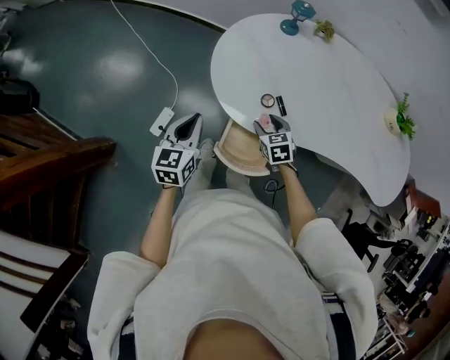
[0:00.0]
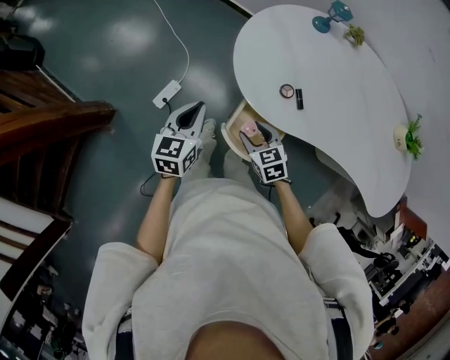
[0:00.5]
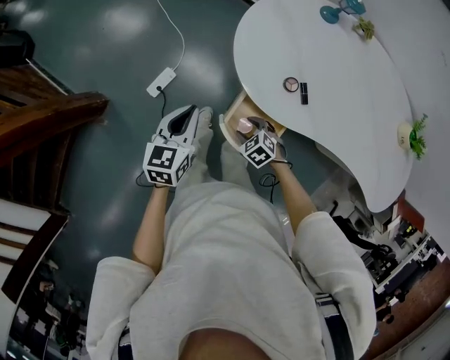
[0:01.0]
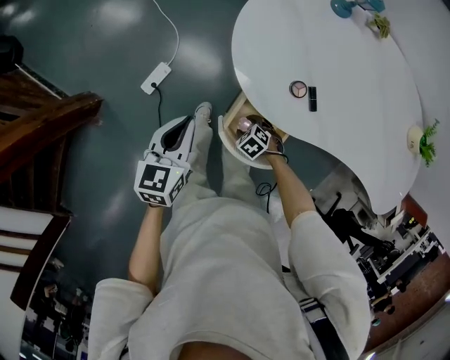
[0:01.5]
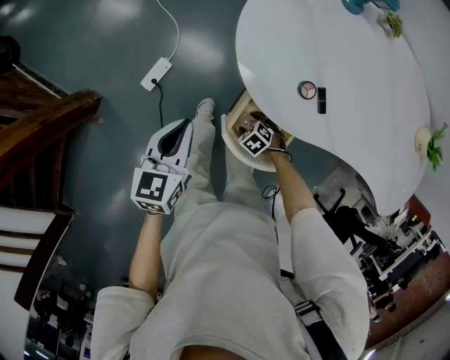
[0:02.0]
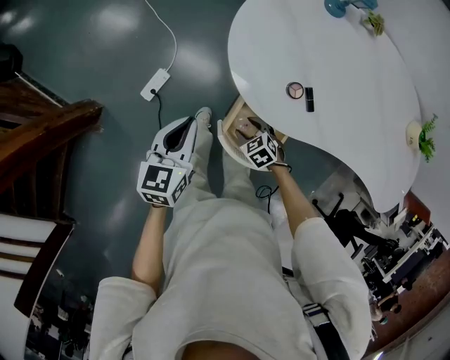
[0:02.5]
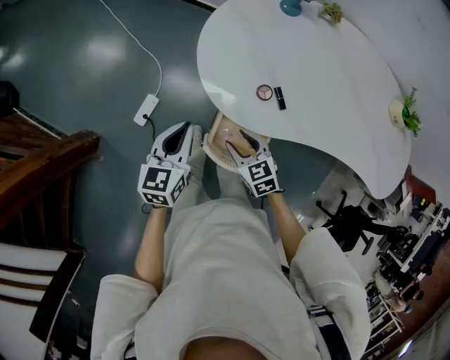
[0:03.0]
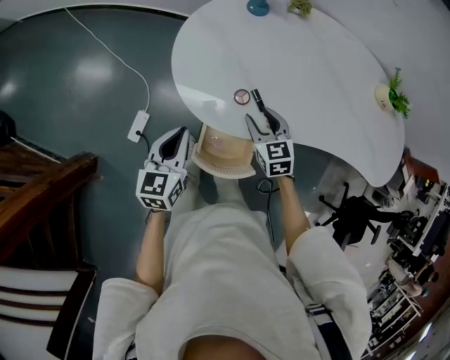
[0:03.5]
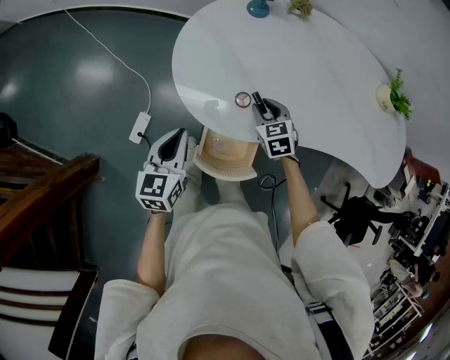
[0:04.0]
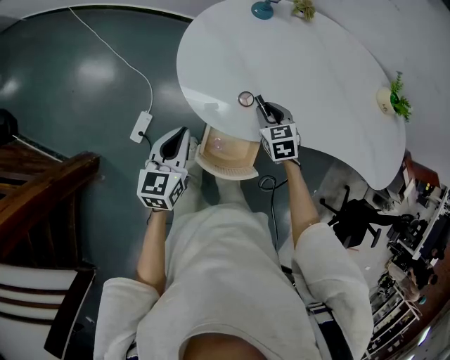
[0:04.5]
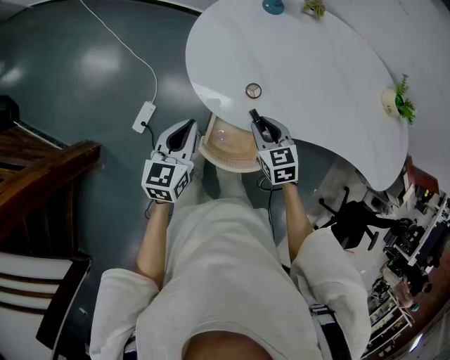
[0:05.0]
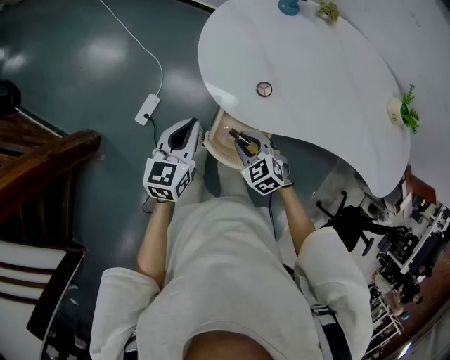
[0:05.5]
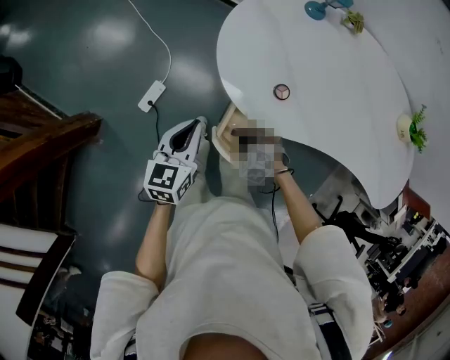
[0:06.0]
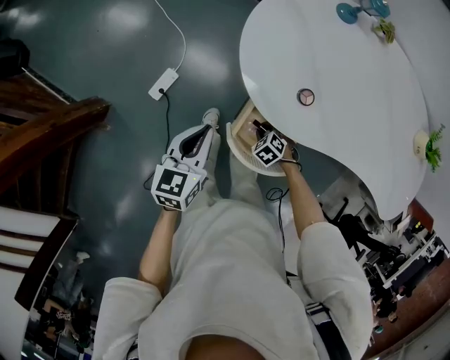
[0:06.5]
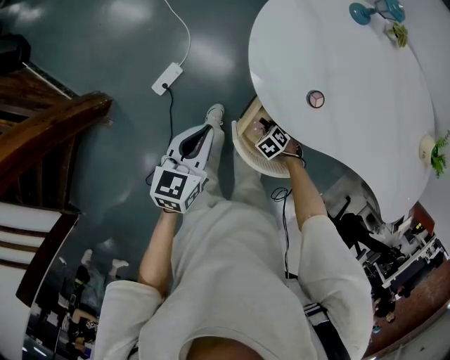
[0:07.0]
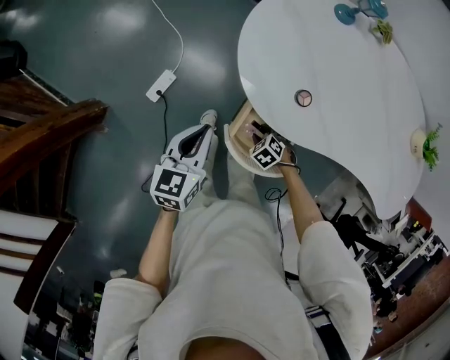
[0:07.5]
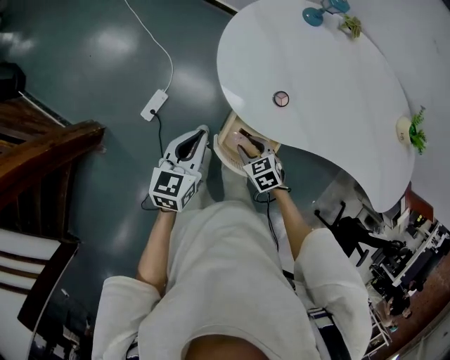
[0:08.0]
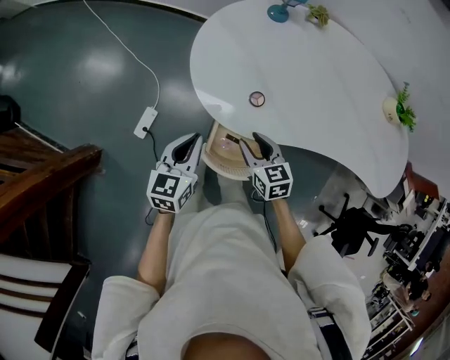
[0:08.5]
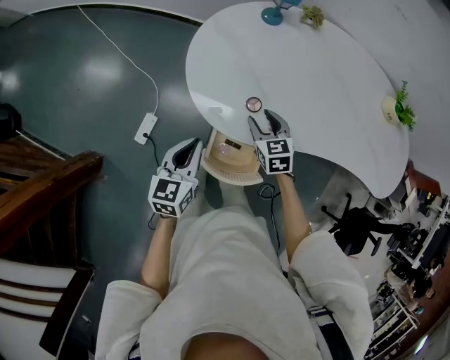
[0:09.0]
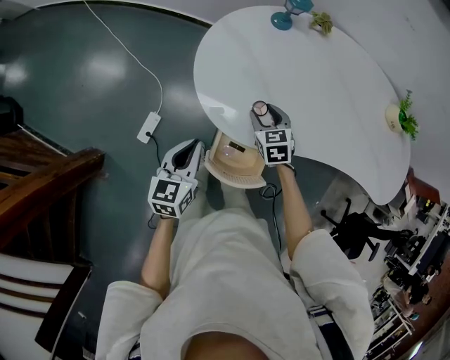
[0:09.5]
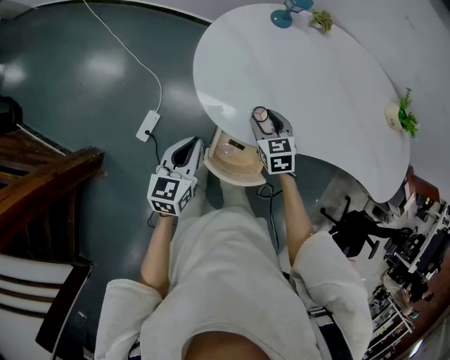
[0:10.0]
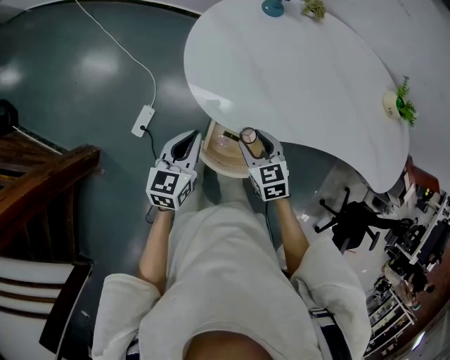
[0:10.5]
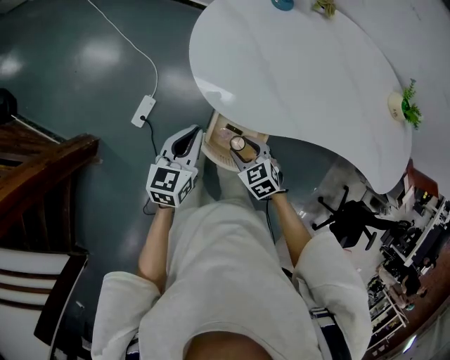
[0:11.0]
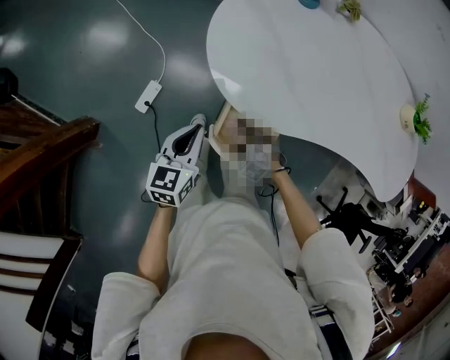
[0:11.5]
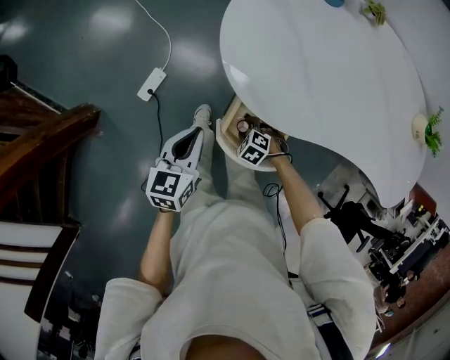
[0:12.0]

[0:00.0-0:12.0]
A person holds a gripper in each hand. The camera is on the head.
0:00.0 to 0:02.0: The left gripper goes some 10 cm downward; the right gripper is displaced downward by approximately 25 cm, and rotates some 50 degrees.
0:02.0 to 0:04.0: The left gripper changes place by approximately 15 cm; the right gripper is displaced upward by approximately 25 cm, swivels roughly 50 degrees, and closes its fingers.
0:04.0 to 0:06.0: The left gripper travels to the left by some 5 cm. Meanwhile the right gripper is displaced backward, to the left and downward by approximately 25 cm, and rolls counterclockwise, seen from behind, by about 50 degrees.
0:06.0 to 0:08.0: The right gripper moves approximately 15 cm downward and comes back, and changes its angle by about 40 degrees.
0:08.0 to 0:10.0: The right gripper is displaced forward, upward and to the right by some 20 cm, and changes its angle by approximately 30 degrees.
0:10.0 to 0:12.0: The left gripper shifts roughly 5 cm downward; the right gripper heads downward, covering some 20 cm, and turns by about 60 degrees.

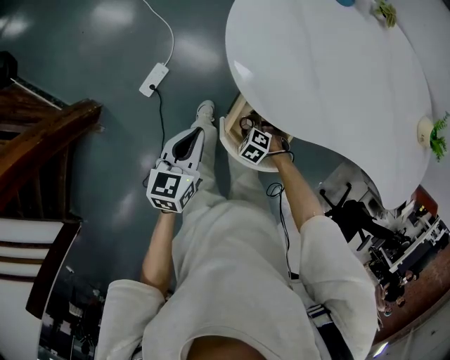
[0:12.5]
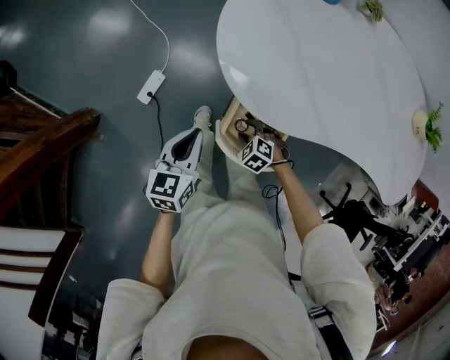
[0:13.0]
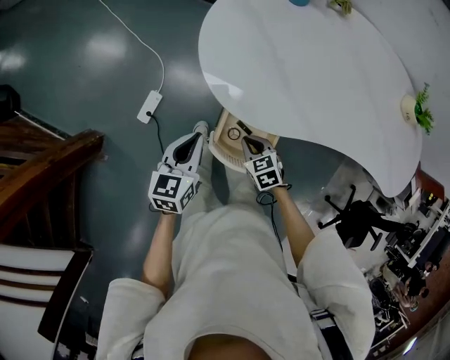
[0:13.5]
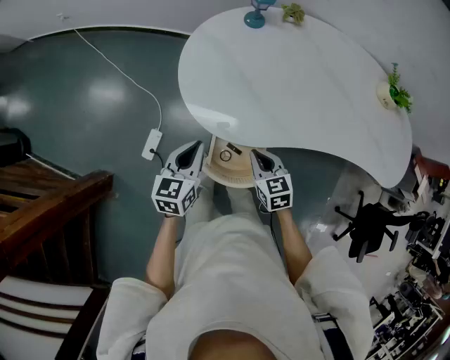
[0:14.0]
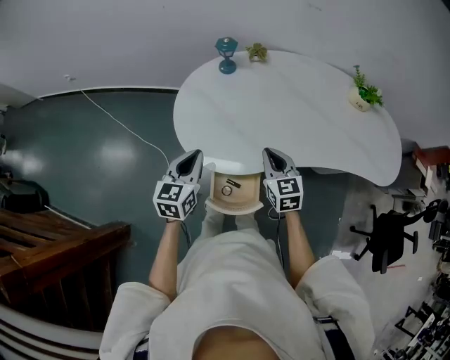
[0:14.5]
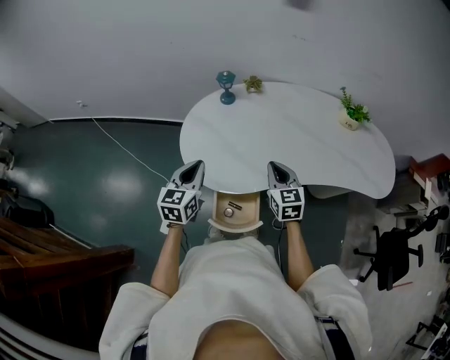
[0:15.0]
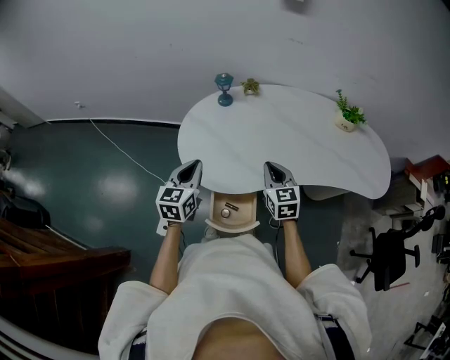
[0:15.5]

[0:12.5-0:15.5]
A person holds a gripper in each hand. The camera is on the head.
0:12.5 to 0:14.0: The left gripper shifts by about 15 cm. The right gripper moves upward, approximately 25 cm, points its fingers roughly 40 degrees further upward, and closes its fingers.
0:14.0 to 0:15.5: The left gripper moves upward and forward, roughly 15 cm. The right gripper travels upward, to the right and forward by roughly 20 cm, and rotates some 30 degrees.

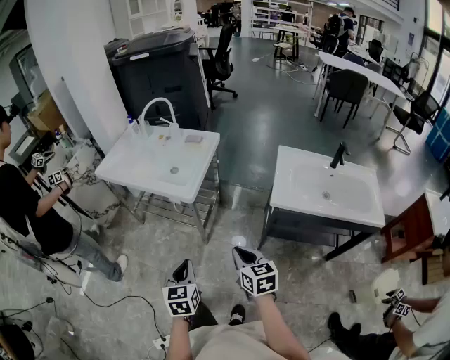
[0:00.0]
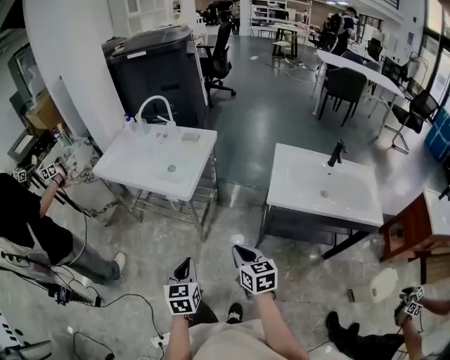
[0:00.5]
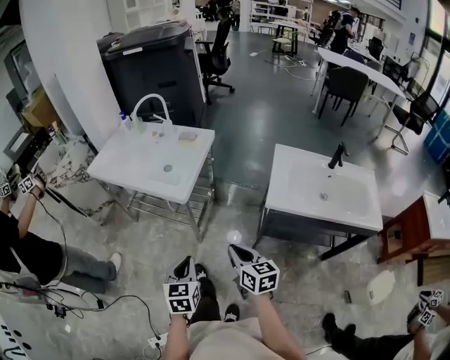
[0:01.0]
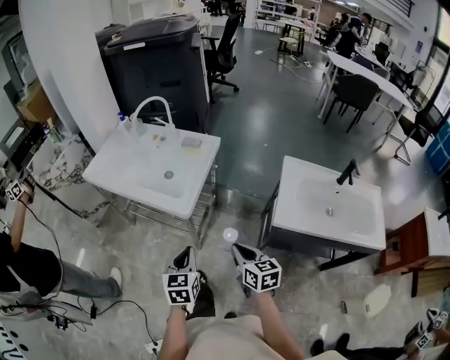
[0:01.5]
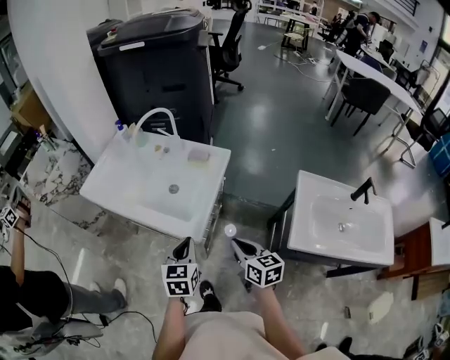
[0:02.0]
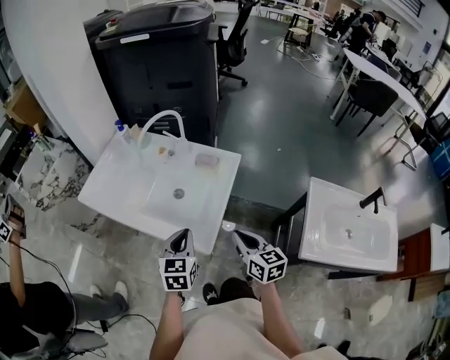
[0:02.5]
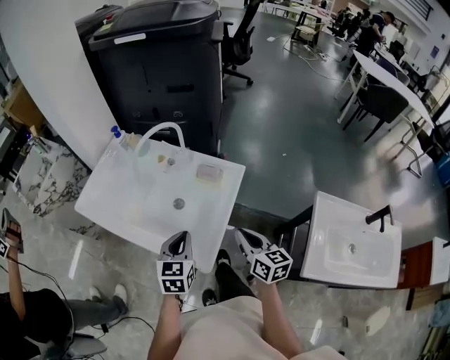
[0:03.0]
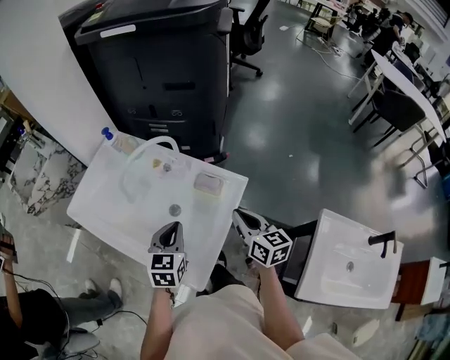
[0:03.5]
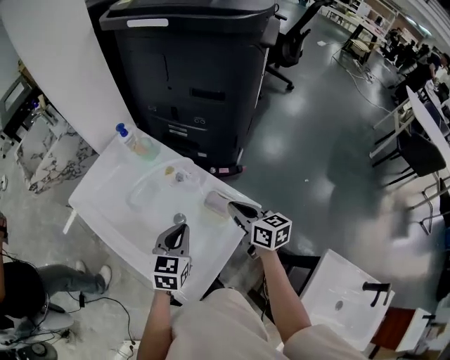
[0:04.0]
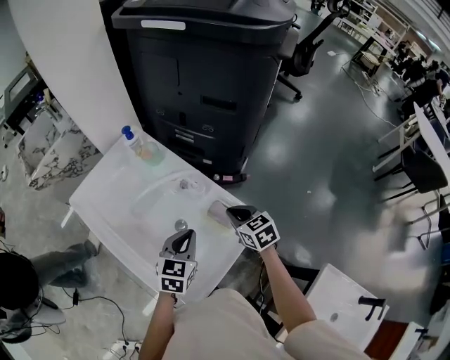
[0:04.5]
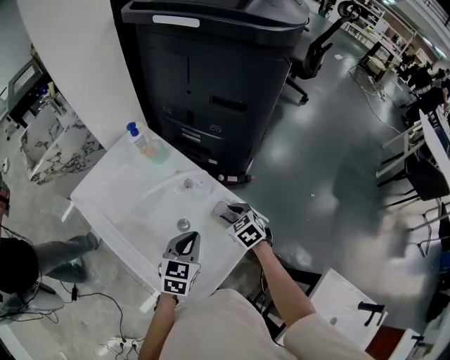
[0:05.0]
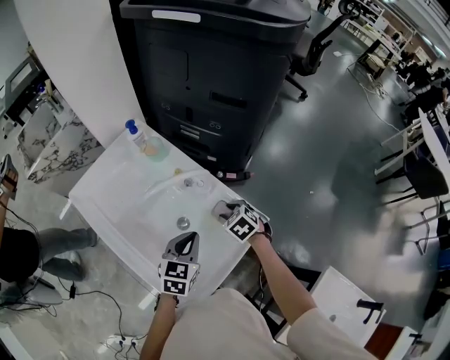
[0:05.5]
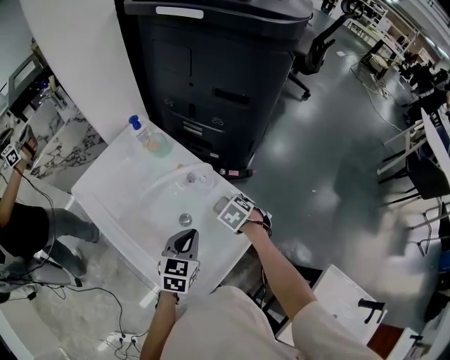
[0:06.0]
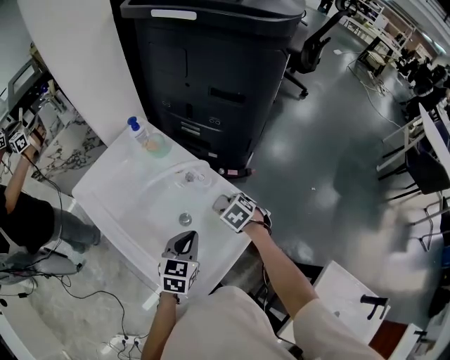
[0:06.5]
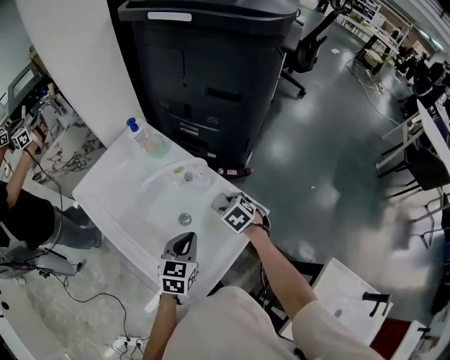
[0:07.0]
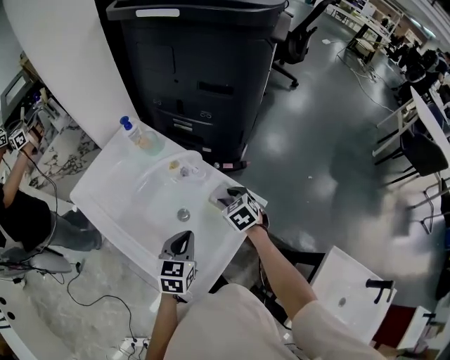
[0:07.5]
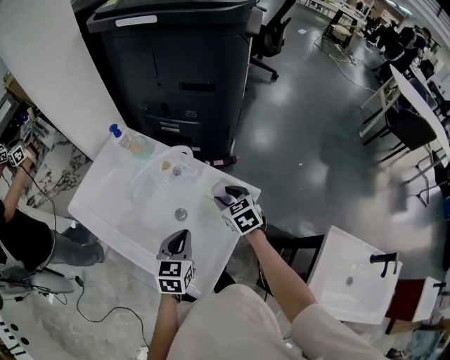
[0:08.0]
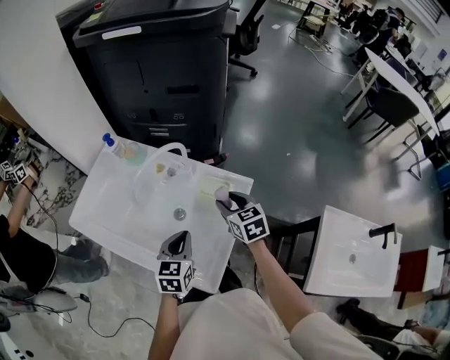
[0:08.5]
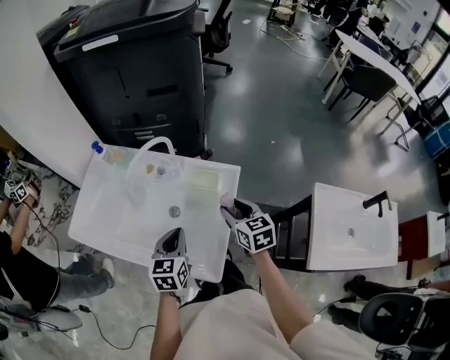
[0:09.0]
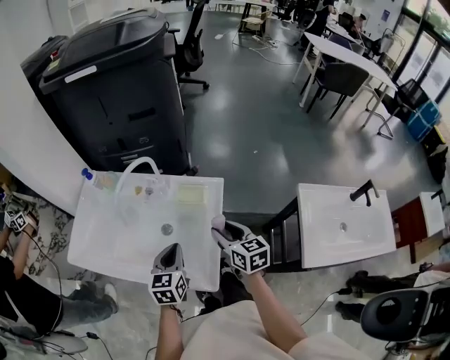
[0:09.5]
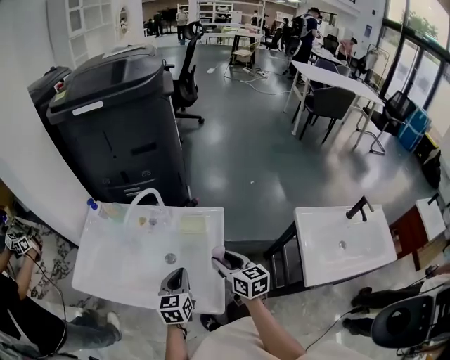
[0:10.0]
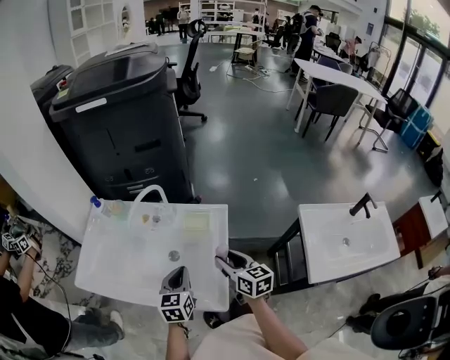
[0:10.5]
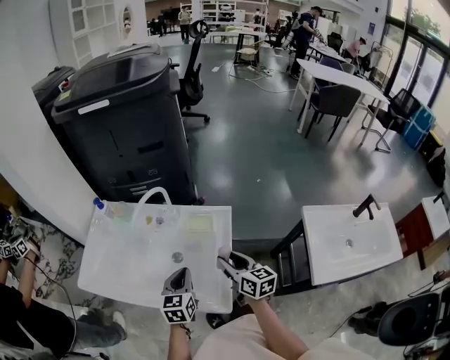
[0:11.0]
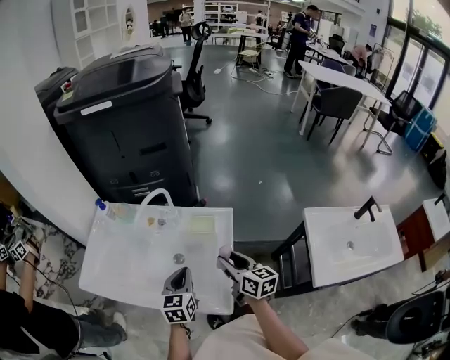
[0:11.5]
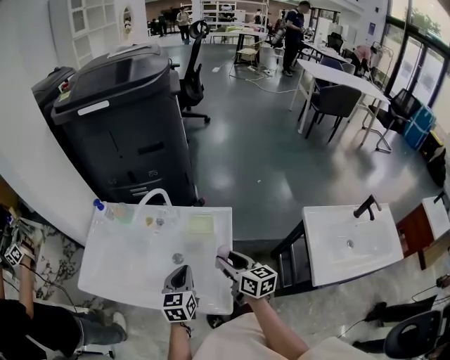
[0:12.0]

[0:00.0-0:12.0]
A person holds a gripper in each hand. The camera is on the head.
0:00.0 to 0:02.0: Both grippers travel together forward, roughly 25 cm.
0:02.0 to 0:04.0: The two grippers go roughly 35 cm forward. The right gripper turns by roughly 20 degrees.
0:04.0 to 0:06.0: The right gripper heads downward, covering roughly 15 cm, tilts its fingers some 50 degrees downward, and opens its fingers.
0:06.0 to 0:08.0: The right gripper travels upward by roughly 5 cm, and points its fingers about 30 degrees further upward.
0:08.0 to 0:10.0: The right gripper goes about 20 cm backward, and swivels some 50 degrees.
0:10.0 to 0:12.0: The grippers stay close to where they were, moving slightly.
